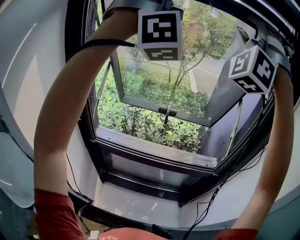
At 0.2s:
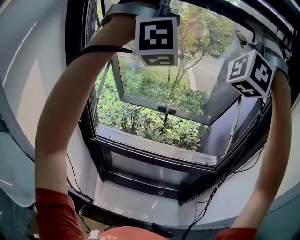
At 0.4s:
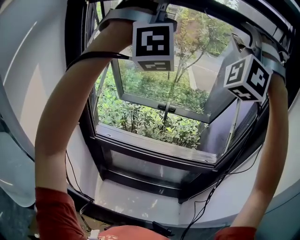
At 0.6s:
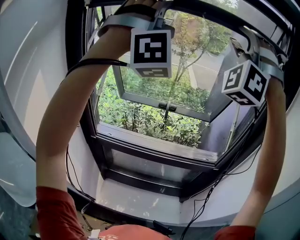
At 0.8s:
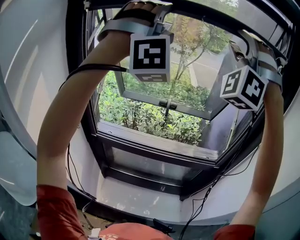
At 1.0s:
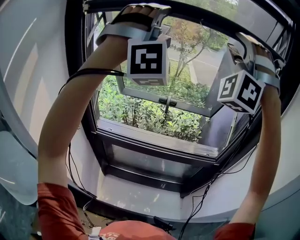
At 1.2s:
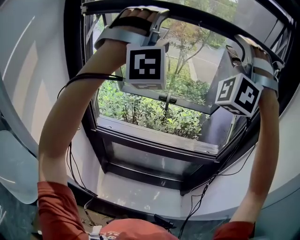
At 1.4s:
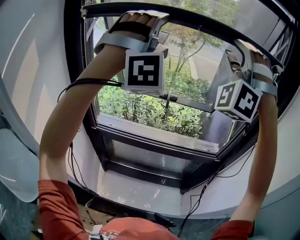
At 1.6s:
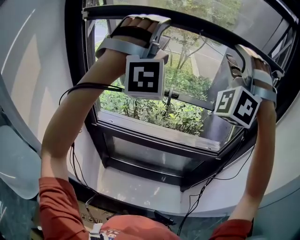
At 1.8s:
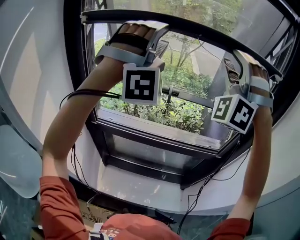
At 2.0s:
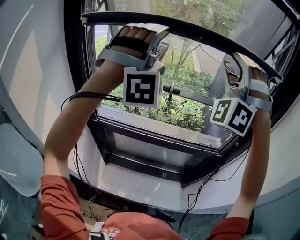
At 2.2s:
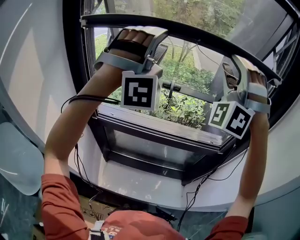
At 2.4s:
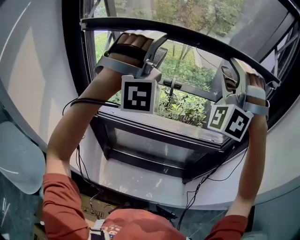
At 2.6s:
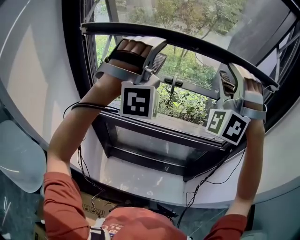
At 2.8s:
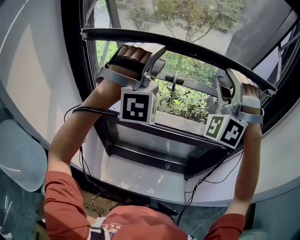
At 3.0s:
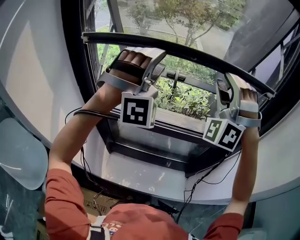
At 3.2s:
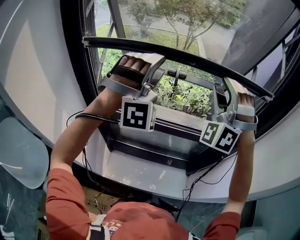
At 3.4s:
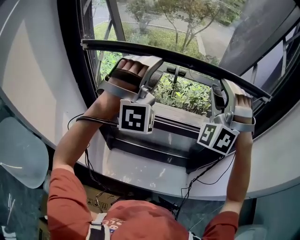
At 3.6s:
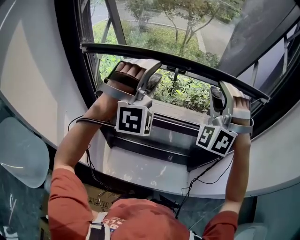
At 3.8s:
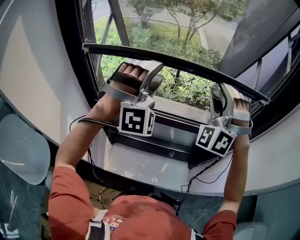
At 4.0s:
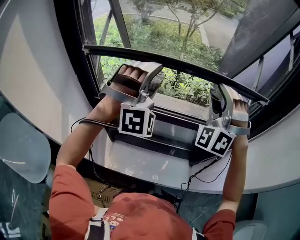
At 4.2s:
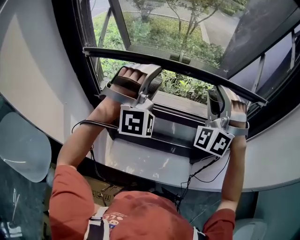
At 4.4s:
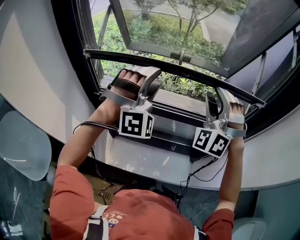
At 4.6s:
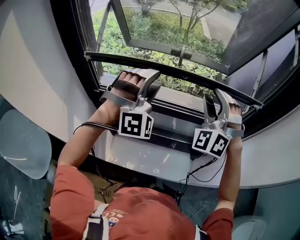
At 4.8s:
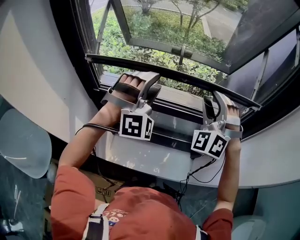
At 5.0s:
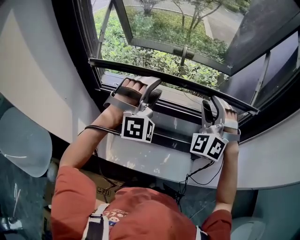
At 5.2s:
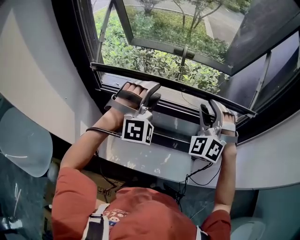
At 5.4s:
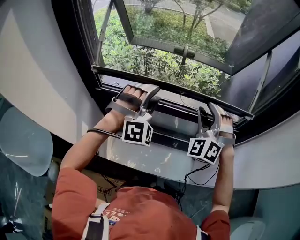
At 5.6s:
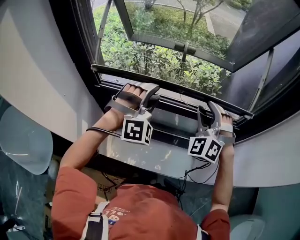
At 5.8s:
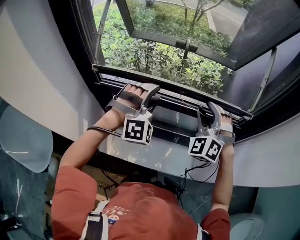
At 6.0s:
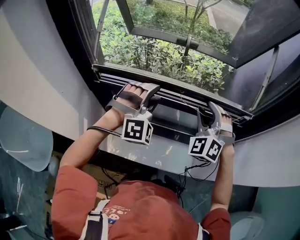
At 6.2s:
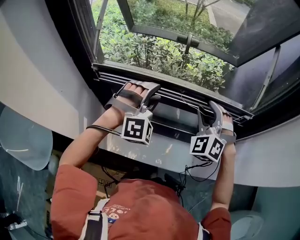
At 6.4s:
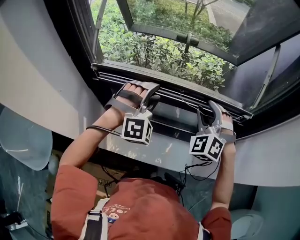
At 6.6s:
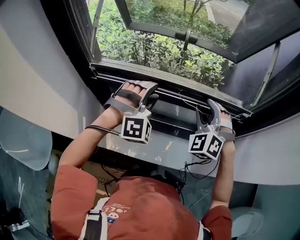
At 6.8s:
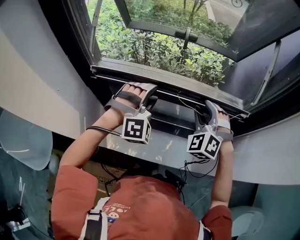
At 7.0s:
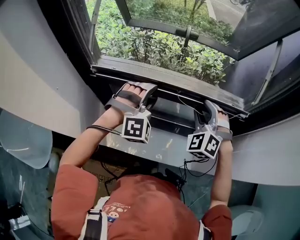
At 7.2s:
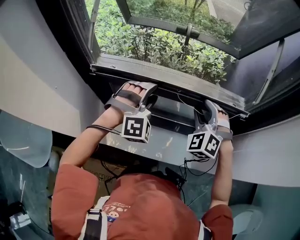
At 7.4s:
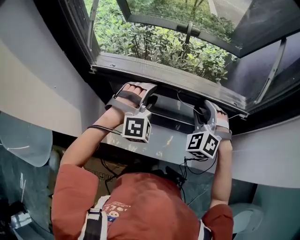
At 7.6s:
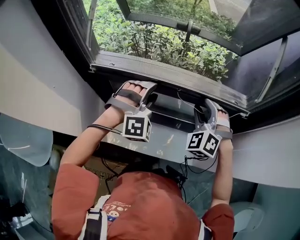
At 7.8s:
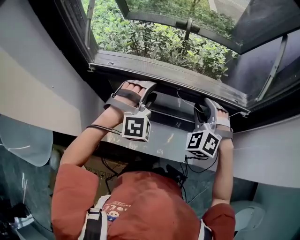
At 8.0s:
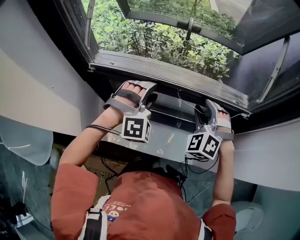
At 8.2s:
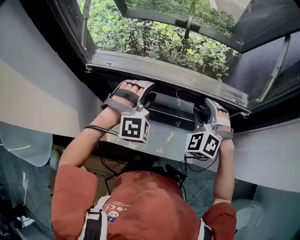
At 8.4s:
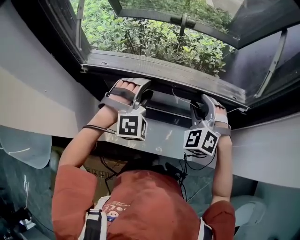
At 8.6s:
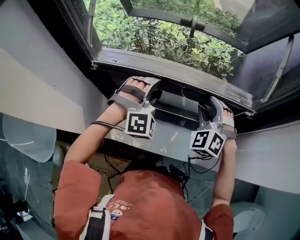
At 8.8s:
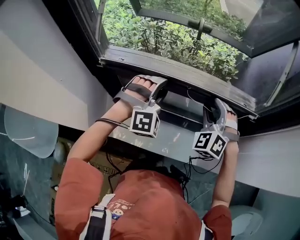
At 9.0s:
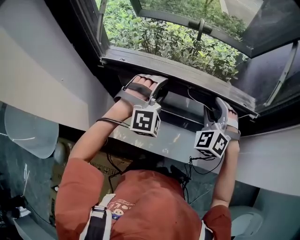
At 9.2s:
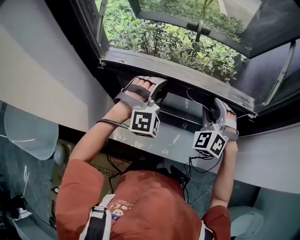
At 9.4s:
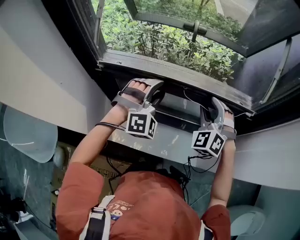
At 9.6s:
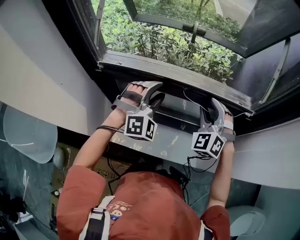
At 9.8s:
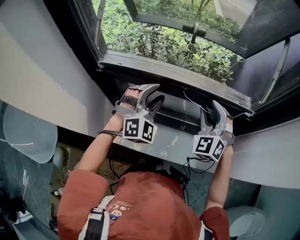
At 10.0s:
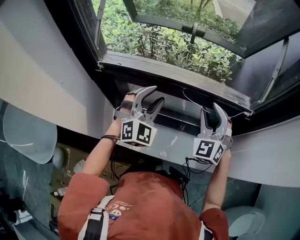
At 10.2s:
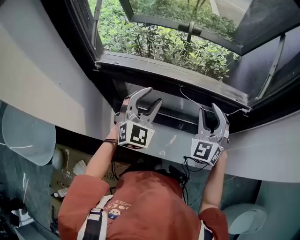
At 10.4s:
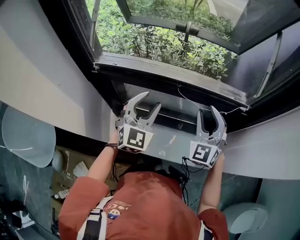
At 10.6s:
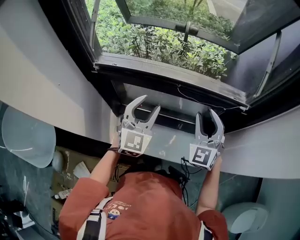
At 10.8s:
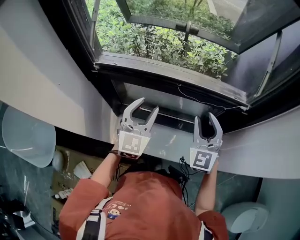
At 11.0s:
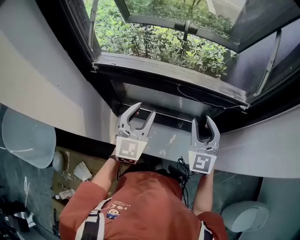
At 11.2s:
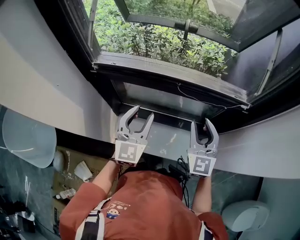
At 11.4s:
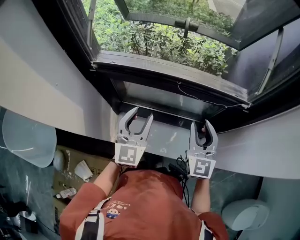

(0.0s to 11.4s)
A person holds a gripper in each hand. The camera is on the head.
0.0s - 1.4s: The two grippers go roughly 15 cm downward.
1.4s - 2.8s: Both grippers travel together downward, some 15 cm.
2.8s - 4.2s: The grippers both shift downward by approximately 15 cm.
4.2s - 5.6s: Both grippers move downward, approximately 10 cm.
5.6s - 7.2s: Both grippers travel together downward, roughly 10 cm.
7.2s - 8.6s: Both grippers stay about where they are.
8.6s - 10.0s: The left gripper turns by roughly 30 degrees.
10.0s - 11.4s: Both grippers travel together backward, roughly 10 cm. The right gripper rotates approximately 40 degrees. Meanwhile the left gripper changes its angle by about 40 degrees.

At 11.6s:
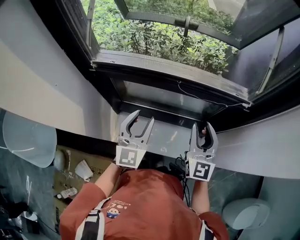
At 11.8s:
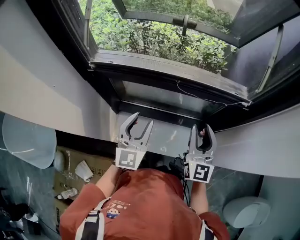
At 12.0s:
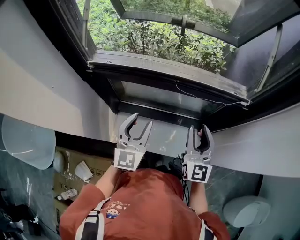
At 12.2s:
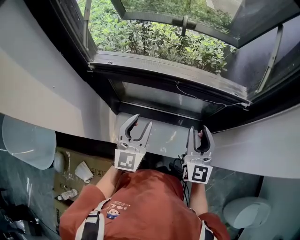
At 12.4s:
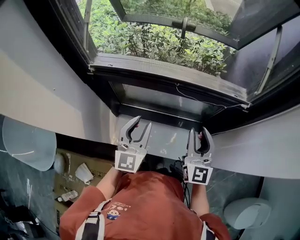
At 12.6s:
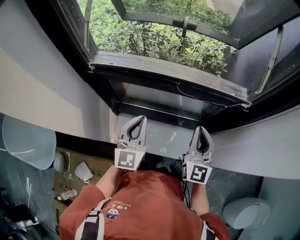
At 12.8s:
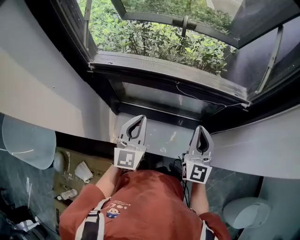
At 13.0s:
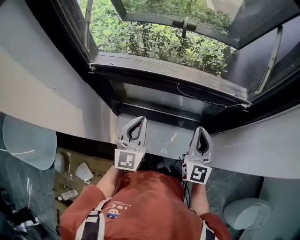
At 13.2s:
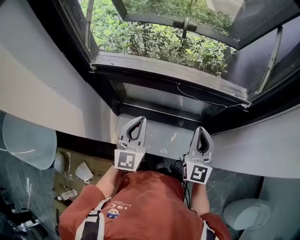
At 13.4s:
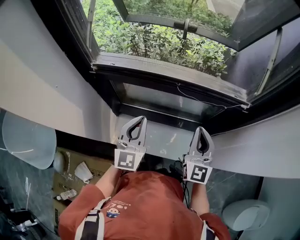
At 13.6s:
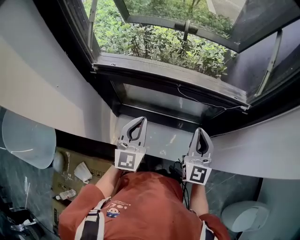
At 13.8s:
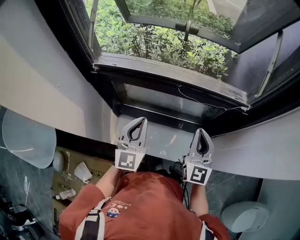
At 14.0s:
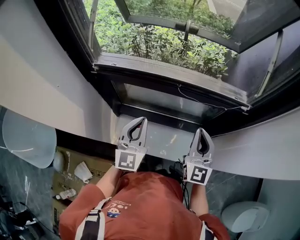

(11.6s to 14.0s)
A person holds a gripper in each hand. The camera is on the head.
11.6s - 12.8s: The right gripper closes, while the left gripper closes its fingers.
12.8s - 14.0s: Both grippers stay about where they are.

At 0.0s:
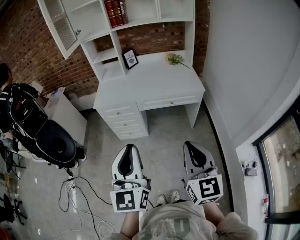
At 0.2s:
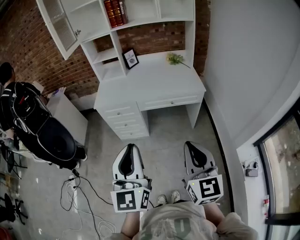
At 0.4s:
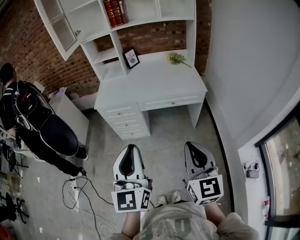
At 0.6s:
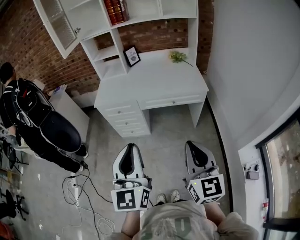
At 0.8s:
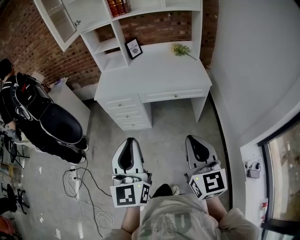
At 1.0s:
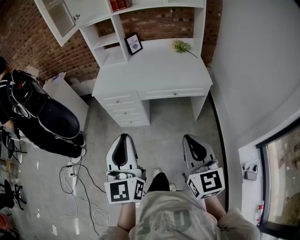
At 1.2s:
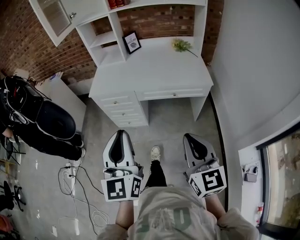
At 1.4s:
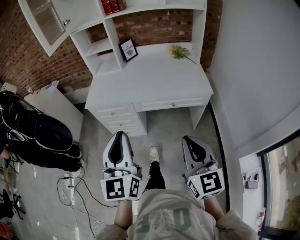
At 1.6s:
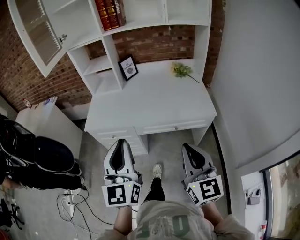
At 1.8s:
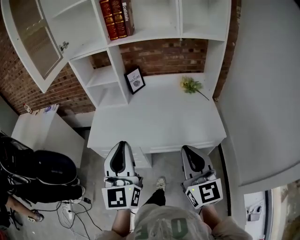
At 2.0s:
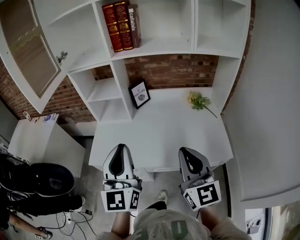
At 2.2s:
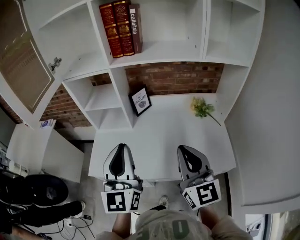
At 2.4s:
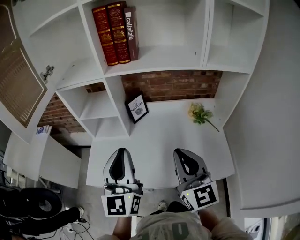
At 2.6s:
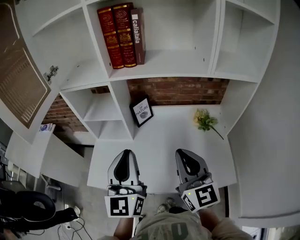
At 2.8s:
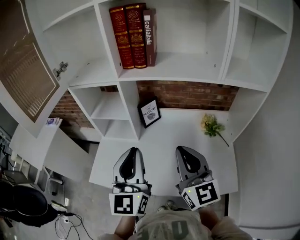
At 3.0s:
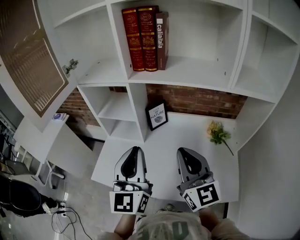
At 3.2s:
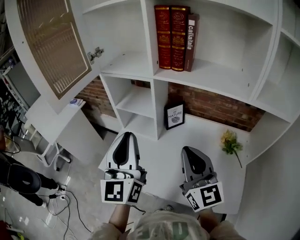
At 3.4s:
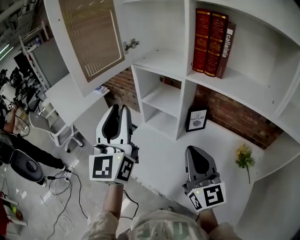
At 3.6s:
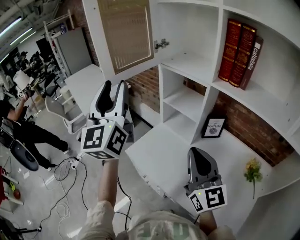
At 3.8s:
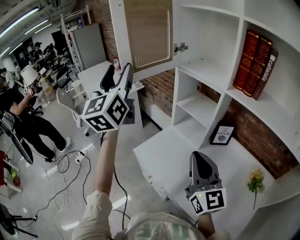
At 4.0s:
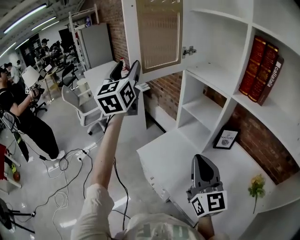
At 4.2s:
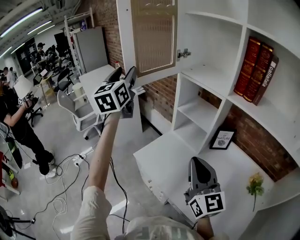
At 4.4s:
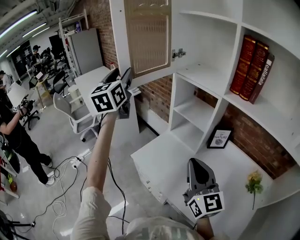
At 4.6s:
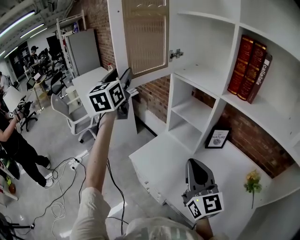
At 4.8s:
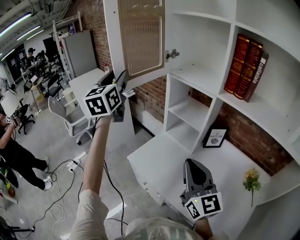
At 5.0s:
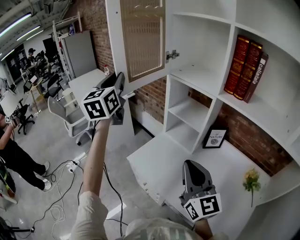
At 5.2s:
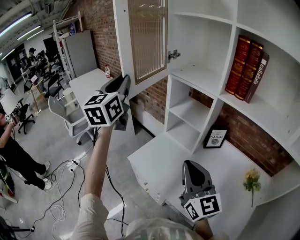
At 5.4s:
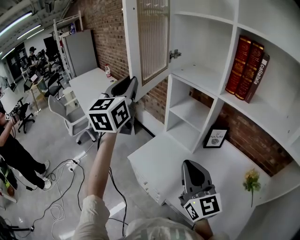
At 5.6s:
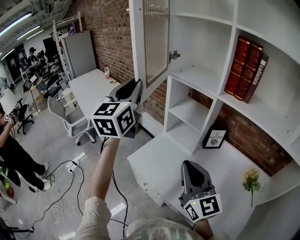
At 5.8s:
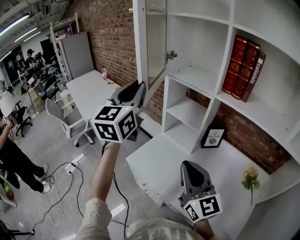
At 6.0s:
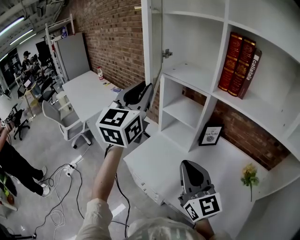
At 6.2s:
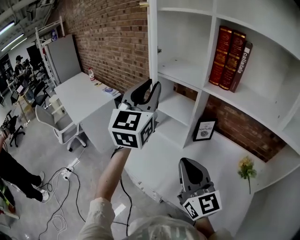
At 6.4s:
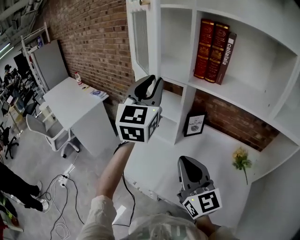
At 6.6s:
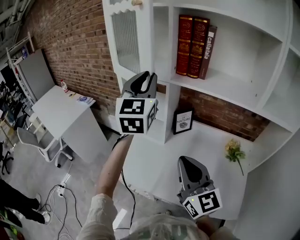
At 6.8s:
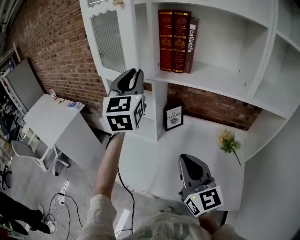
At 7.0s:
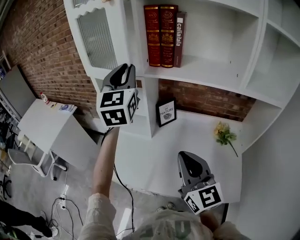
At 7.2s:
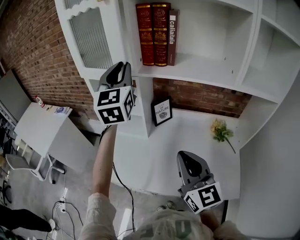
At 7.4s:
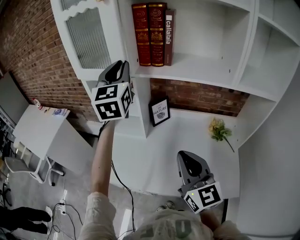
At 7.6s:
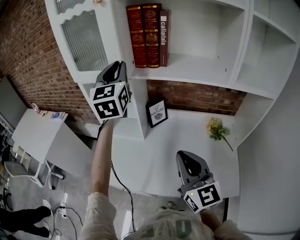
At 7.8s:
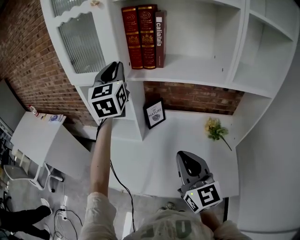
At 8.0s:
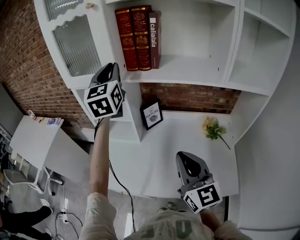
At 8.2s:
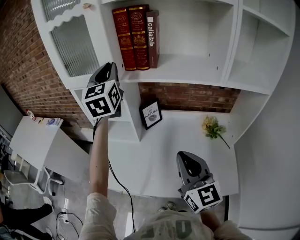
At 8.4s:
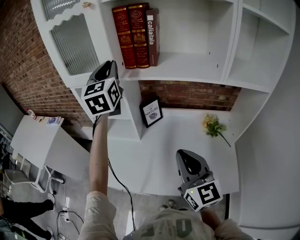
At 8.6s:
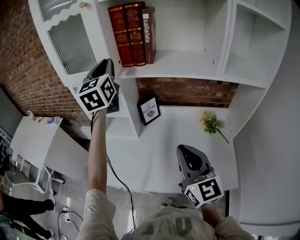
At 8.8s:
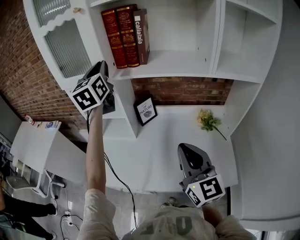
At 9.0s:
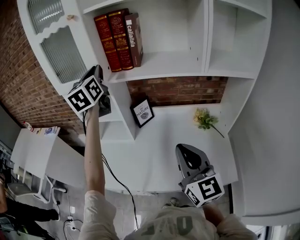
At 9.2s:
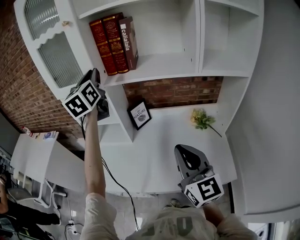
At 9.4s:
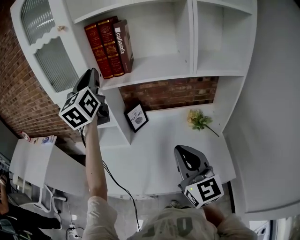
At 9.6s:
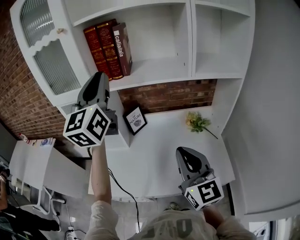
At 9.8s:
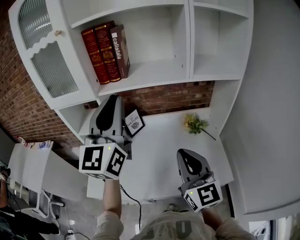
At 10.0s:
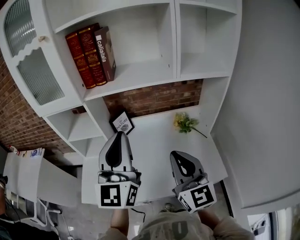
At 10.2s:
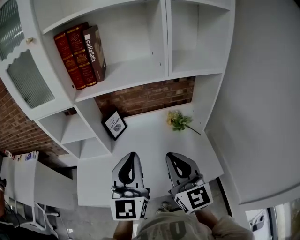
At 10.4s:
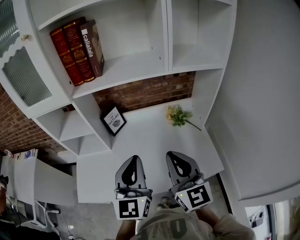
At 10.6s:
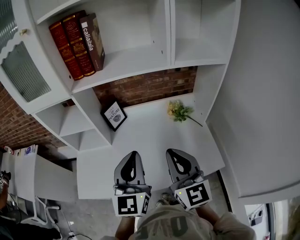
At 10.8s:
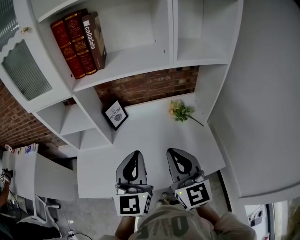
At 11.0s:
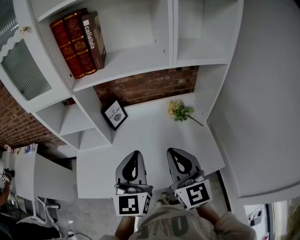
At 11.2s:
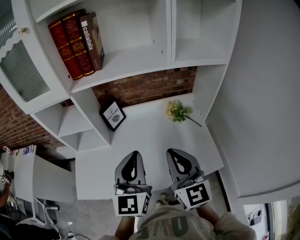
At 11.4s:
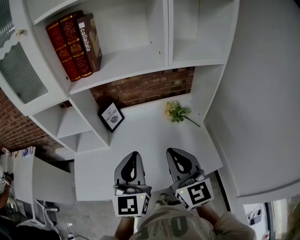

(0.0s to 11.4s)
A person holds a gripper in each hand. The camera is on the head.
0.0s - 1.4s: Both grippers travel together forward, some 15 cm.
1.4s - 2.8s: The two grippers travel together, forward, approximately 50 cm.
2.8s - 4.2s: The left gripper moves some 40 cm, turns by roughly 40 degrees, and opens its fingers. The right gripper ends up some 20 cm from where it was, and turns by approximately 40 degrees.
4.2s - 5.6s: The left gripper travels to the right and backward by about 10 cm, and closes.
5.6s - 7.2s: The right gripper moves to the right, approximately 15 cm, and changes its angle by approximately 30 degrees. The left gripper moves to the right, about 25 cm.
7.2s - 8.6s: The left gripper shifts by some 5 cm.
8.6s - 10.0s: The left gripper moves backward and to the right, some 30 cm, and turns by about 20 degrees. Meanwhile the right gripper moves to the right, approximately 5 cm.
10.0s - 11.4s: The left gripper moves downward, approximately 10 cm.
